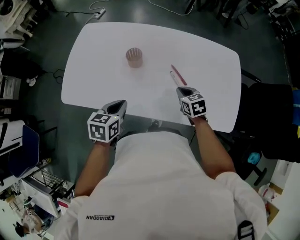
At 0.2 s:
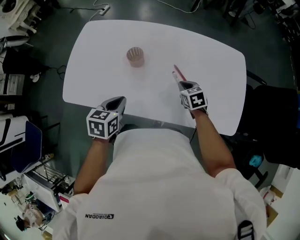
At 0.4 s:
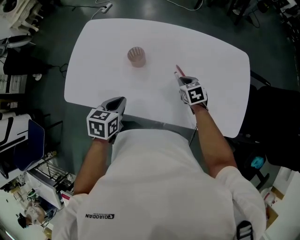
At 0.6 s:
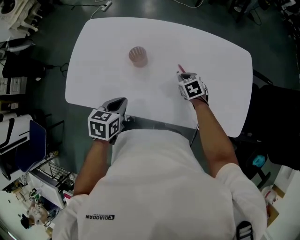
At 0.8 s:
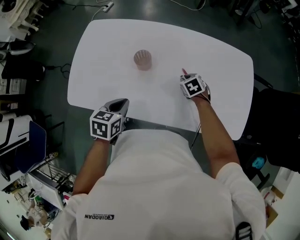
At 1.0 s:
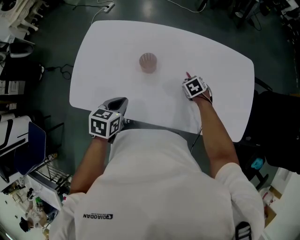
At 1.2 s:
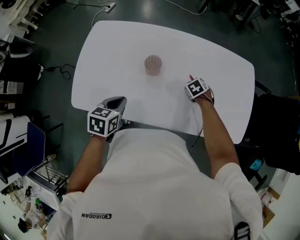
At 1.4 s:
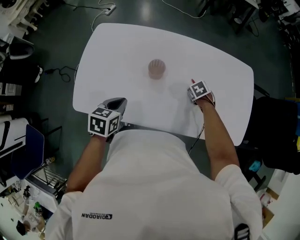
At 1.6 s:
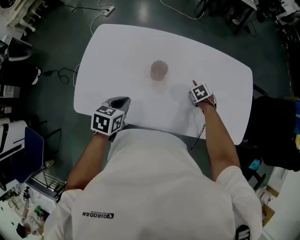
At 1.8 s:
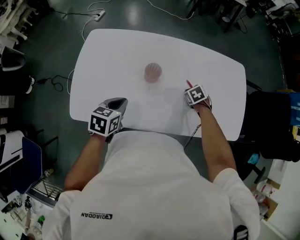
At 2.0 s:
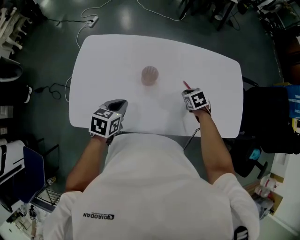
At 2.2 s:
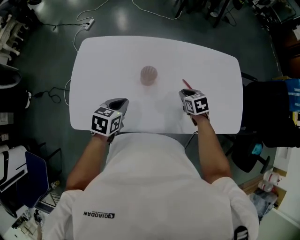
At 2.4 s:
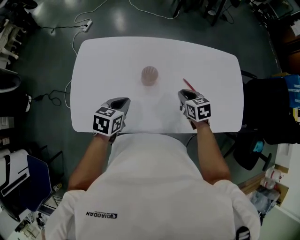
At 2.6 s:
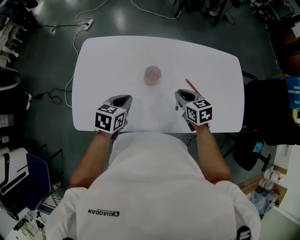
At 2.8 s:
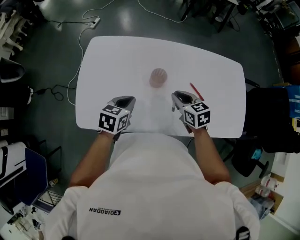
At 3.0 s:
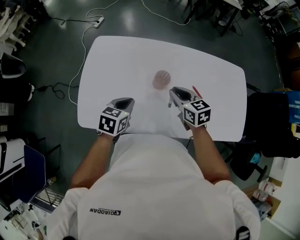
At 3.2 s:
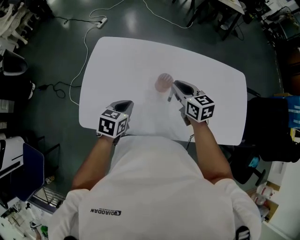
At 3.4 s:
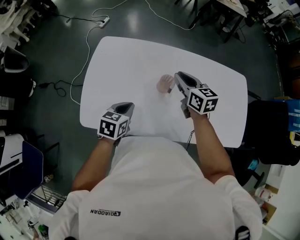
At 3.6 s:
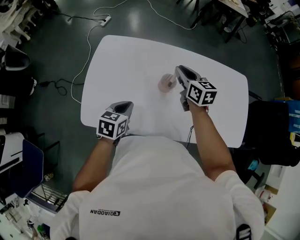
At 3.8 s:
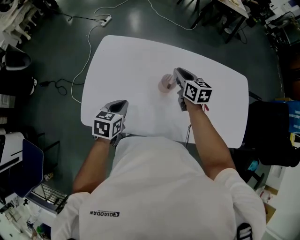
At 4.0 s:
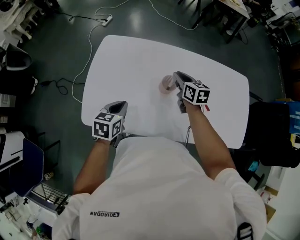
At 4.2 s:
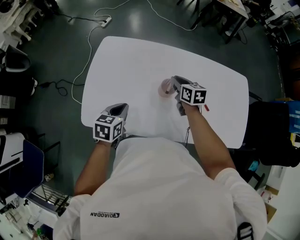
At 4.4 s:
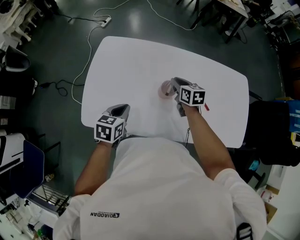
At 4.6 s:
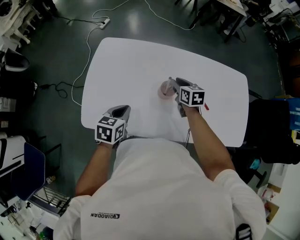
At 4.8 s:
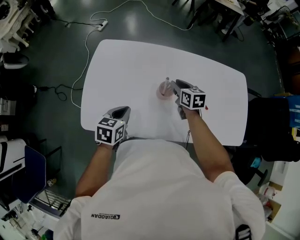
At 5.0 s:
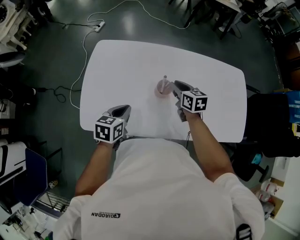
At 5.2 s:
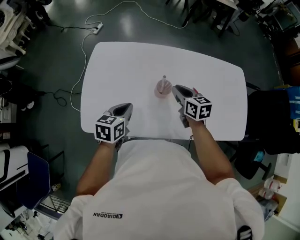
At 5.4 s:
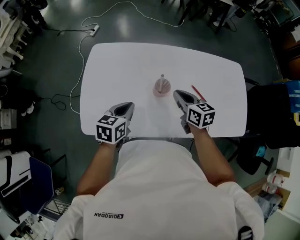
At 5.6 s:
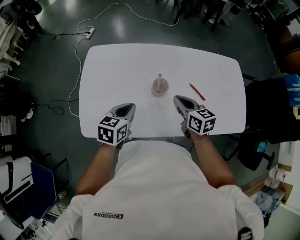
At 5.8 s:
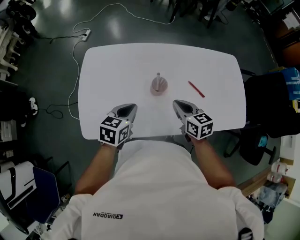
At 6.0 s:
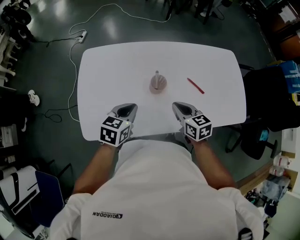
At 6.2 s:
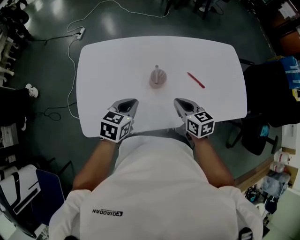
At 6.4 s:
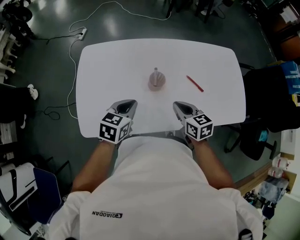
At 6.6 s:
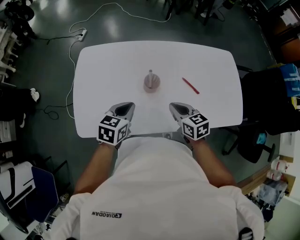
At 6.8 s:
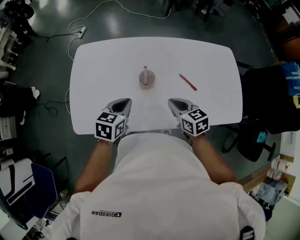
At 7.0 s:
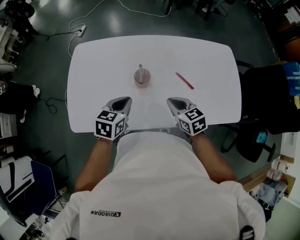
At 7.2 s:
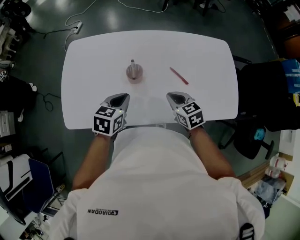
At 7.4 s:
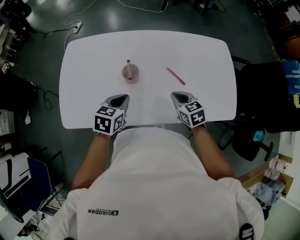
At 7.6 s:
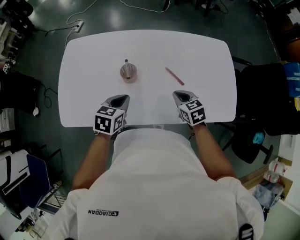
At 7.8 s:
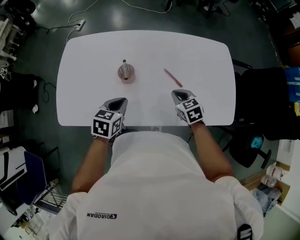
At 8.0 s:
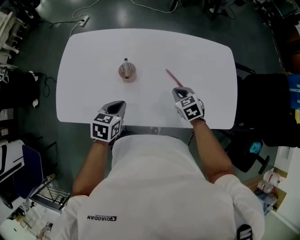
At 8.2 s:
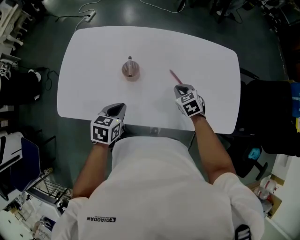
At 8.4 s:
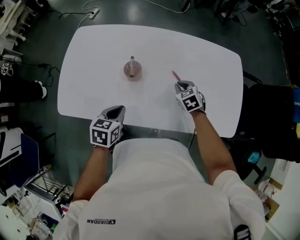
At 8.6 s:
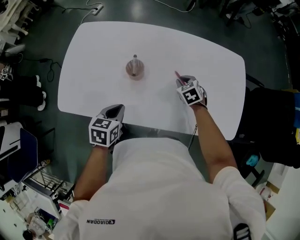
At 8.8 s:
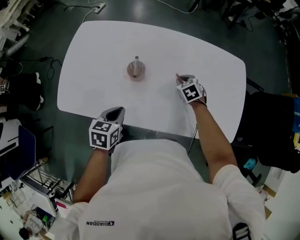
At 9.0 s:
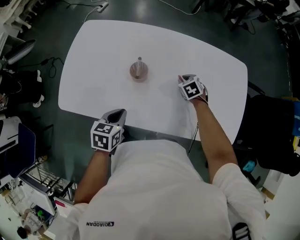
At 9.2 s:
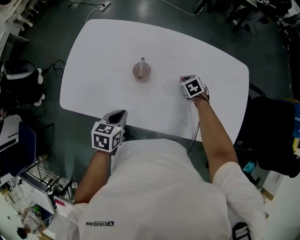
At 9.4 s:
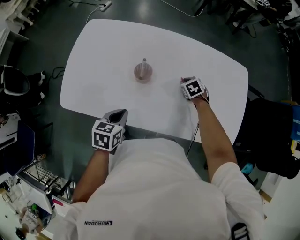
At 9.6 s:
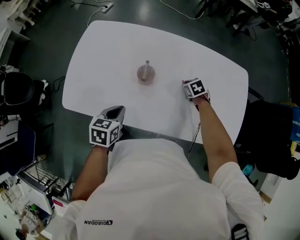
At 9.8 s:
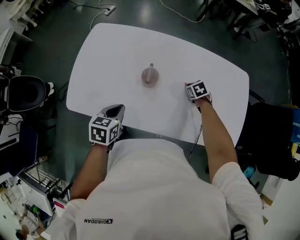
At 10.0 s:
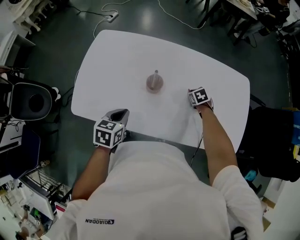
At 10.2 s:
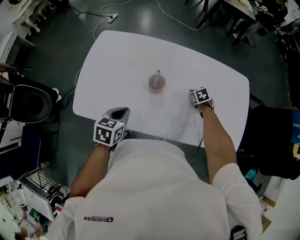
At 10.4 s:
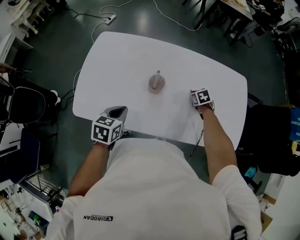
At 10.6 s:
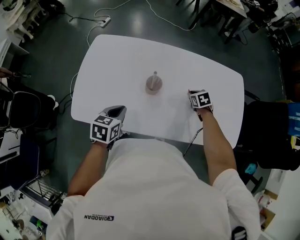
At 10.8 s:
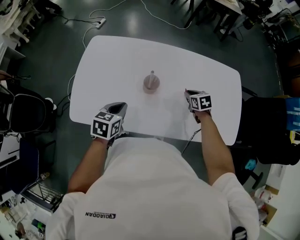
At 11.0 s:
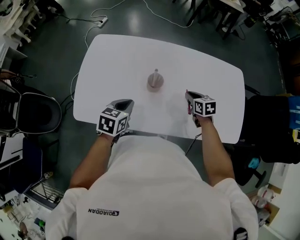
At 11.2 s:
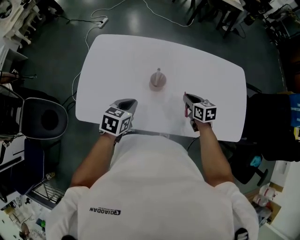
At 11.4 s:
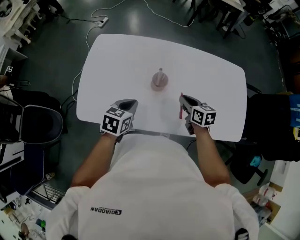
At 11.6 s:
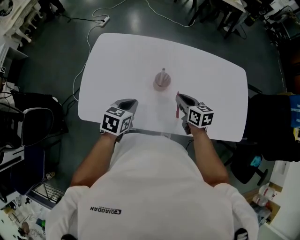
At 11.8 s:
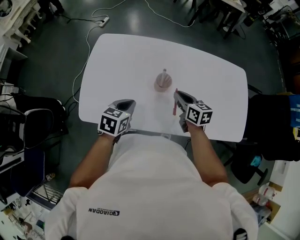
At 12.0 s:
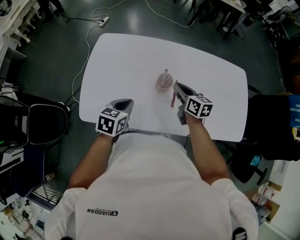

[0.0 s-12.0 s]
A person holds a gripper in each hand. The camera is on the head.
0.0 to 1.6 s: The right gripper goes some 10 cm downward, and turns by approximately 30 degrees; the left gripper changes place by about 15 cm.
1.6 to 3.0 s: The right gripper is displaced upward by about 20 cm, and angles its fingers upward, by some 40 degrees.
3.0 to 4.4 s: The left gripper heads to the left, covering about 5 cm; the right gripper heads forward and downward, covering roughly 10 cm.
4.4 to 6.0 s: The right gripper moves backward, some 15 cm, while the left gripper is displaced to the right by some 5 cm.
6.0 to 7.6 s: Both grippers move to the right, approximately 15 cm.
7.6 to 9.0 s: The left gripper moves roughly 5 cm. The right gripper moves forward and downward, approximately 20 cm, and rotates approximately 30 degrees.
9.0 to 10.4 s: The left gripper goes some 10 cm to the left.
10.4 to 12.0 s: The right gripper travels to the left and upward by approximately 25 cm, and points its fingers roughly 40 degrees further upward.

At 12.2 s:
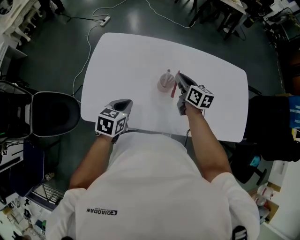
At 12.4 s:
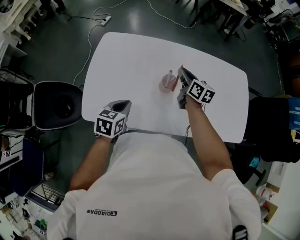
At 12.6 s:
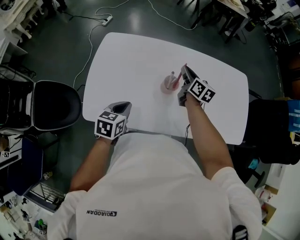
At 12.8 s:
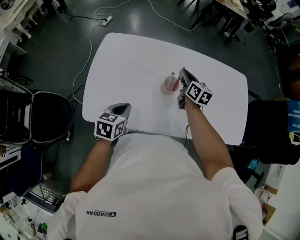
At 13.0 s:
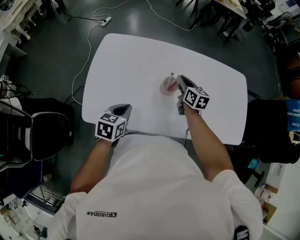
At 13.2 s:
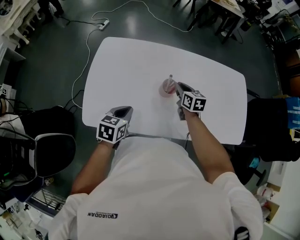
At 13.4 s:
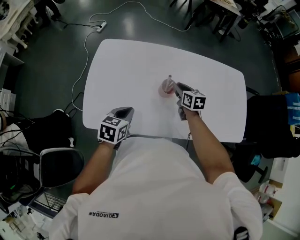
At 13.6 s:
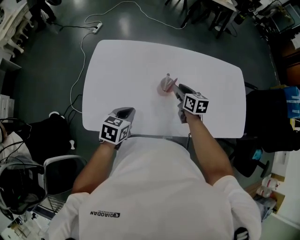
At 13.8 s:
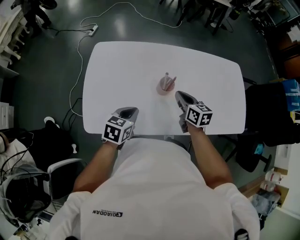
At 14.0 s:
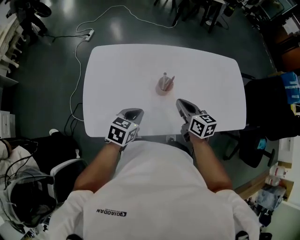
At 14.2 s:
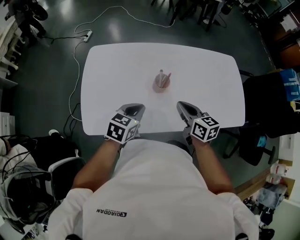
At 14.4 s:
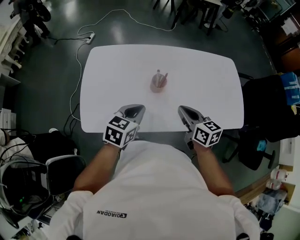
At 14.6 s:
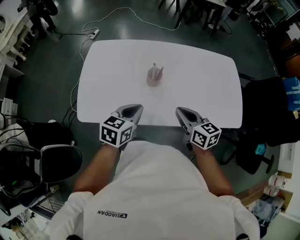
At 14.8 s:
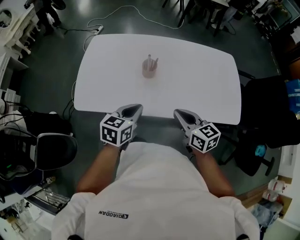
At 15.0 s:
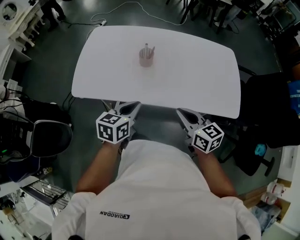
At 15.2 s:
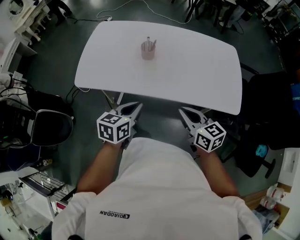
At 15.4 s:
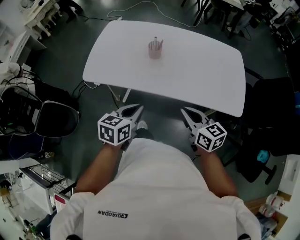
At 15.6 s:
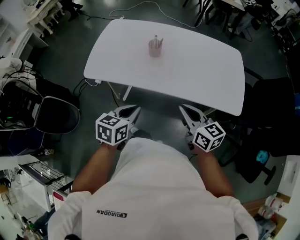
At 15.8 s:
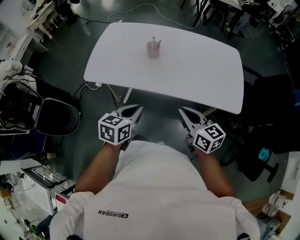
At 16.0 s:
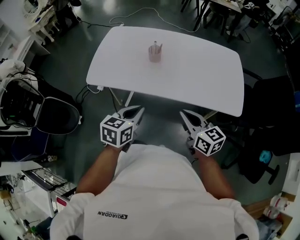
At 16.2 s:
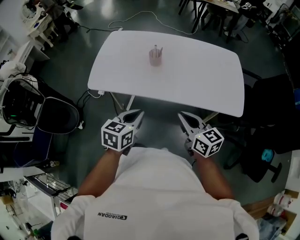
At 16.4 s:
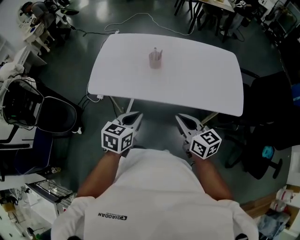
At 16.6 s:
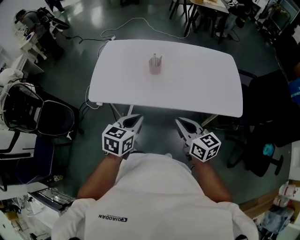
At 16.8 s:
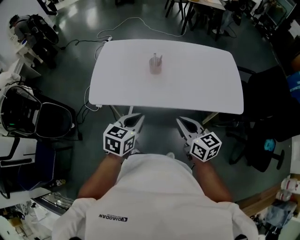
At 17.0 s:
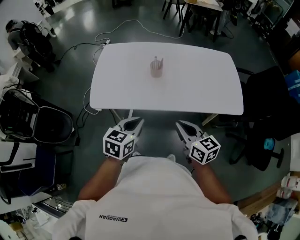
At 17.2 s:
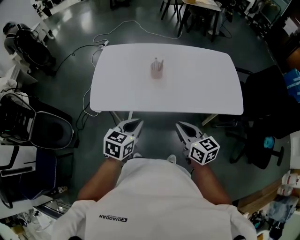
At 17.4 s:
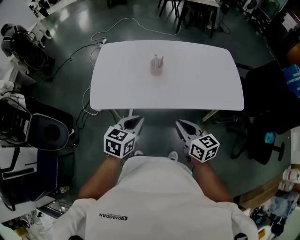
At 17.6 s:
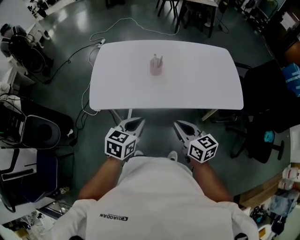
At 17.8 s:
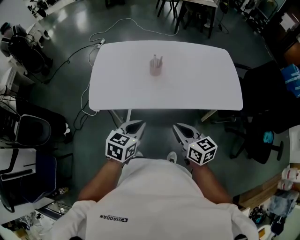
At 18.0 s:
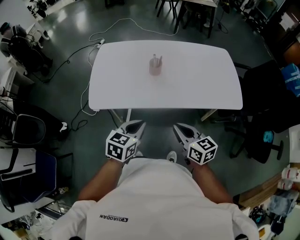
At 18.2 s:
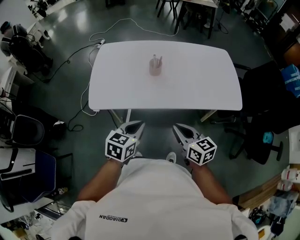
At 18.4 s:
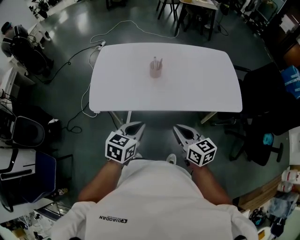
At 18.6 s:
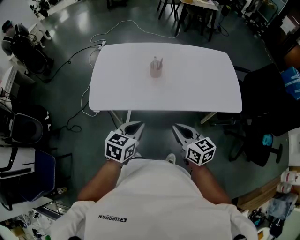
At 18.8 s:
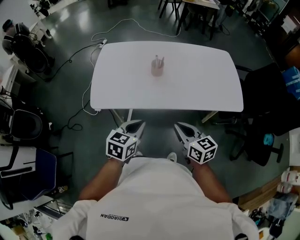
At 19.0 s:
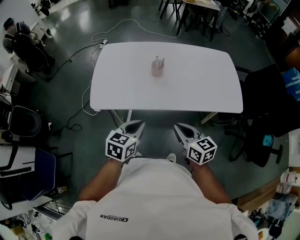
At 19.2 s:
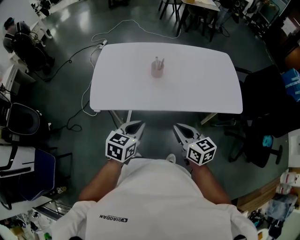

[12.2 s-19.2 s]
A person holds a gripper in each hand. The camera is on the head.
12.2 to 13.6 s: The right gripper changes place by roughly 5 cm.
13.6 to 15.0 s: The right gripper travels backward and to the right by about 35 cm, rotates approximately 20 degrees, and closes, while the left gripper heads to the right and backward, covering roughly 30 cm.
15.0 to 16.4 s: Both grippers move backward, about 10 cm.
16.4 to 17.8 s: The grippers both shift to the left by approximately 5 cm.
17.8 to 19.2 s: Both grippers stay about where they are.

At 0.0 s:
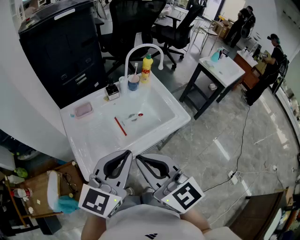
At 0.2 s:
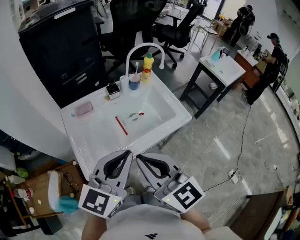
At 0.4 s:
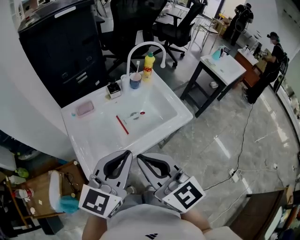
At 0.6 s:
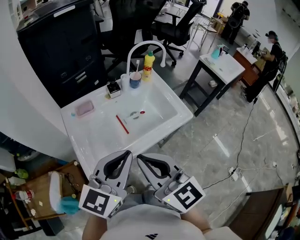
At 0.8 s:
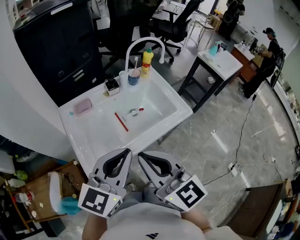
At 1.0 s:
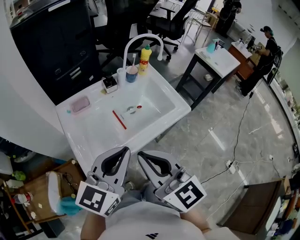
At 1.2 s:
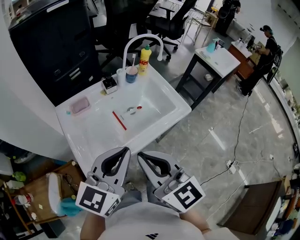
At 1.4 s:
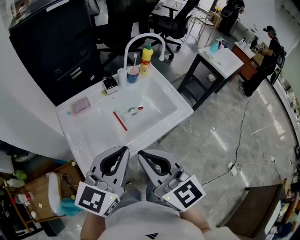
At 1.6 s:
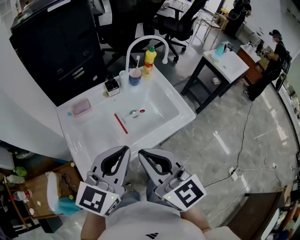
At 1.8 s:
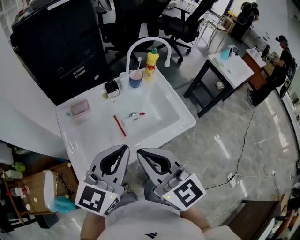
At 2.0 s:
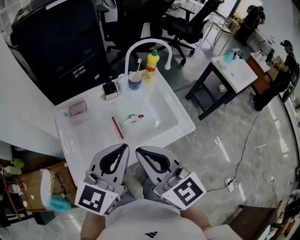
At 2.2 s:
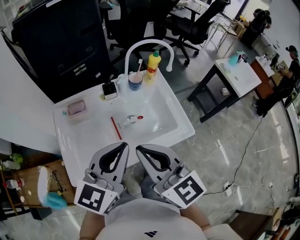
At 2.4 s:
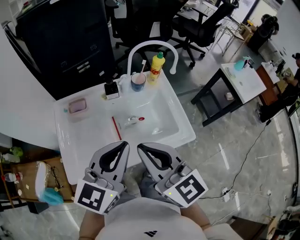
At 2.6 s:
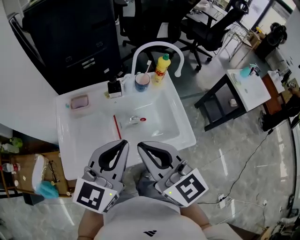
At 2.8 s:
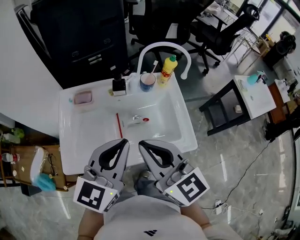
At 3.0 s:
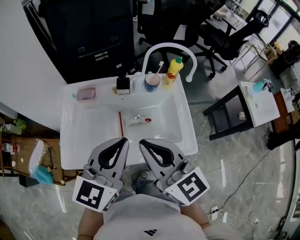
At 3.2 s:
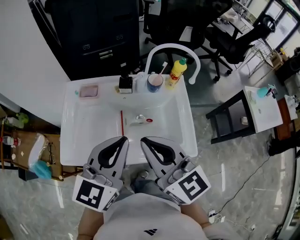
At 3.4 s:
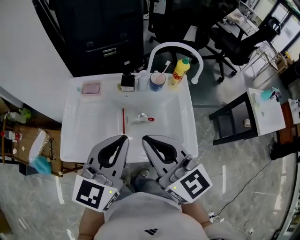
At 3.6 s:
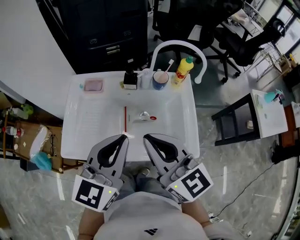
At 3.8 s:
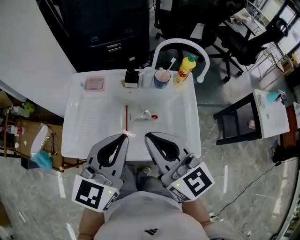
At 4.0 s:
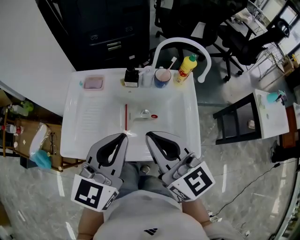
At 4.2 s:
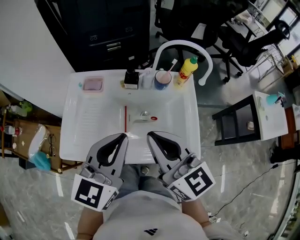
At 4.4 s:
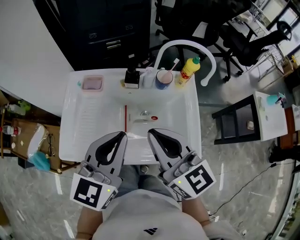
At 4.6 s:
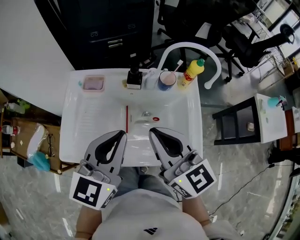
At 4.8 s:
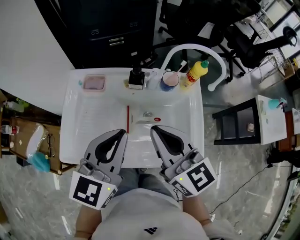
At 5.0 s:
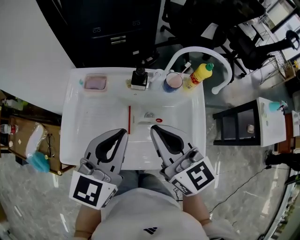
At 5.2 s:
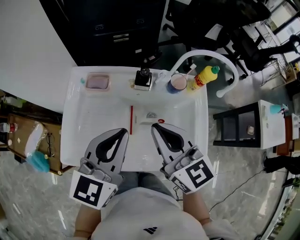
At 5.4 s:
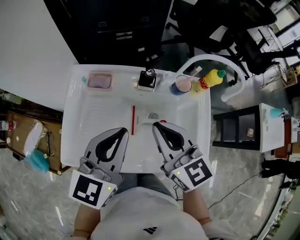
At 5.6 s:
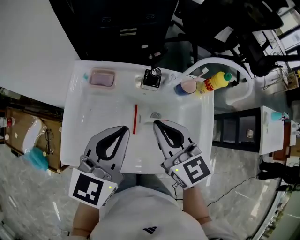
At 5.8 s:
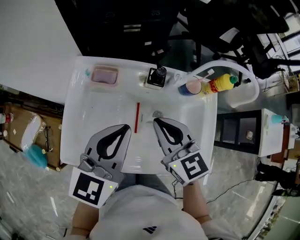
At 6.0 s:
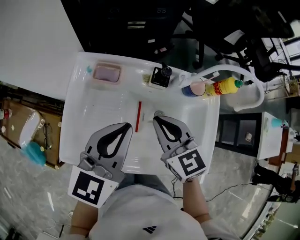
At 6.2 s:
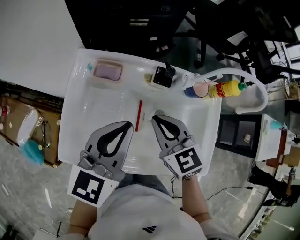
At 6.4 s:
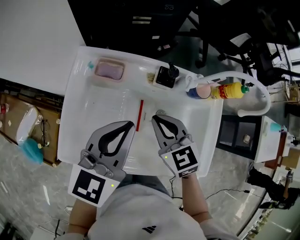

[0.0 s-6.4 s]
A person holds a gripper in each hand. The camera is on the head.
0.0 to 1.6 s: The grippers stay close to where they were, moving slightly.
1.6 to 3.2 s: The left gripper moves about 10 cm, and changes its angle by roughly 30 degrees. Meanwhile the right gripper shifts by some 15 cm, and swivels about 30 degrees.
3.2 to 4.8 s: The two grippers go some 5 cm forward.
4.8 to 6.4 s: The right gripper shifts roughly 20 cm downward, forward and to the left, and turns by approximately 30 degrees. Meanwhile the left gripper moves forward, to the left and downward, some 10 cm.
